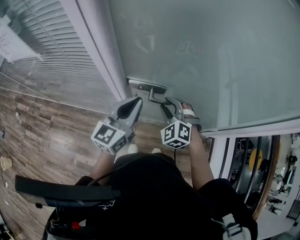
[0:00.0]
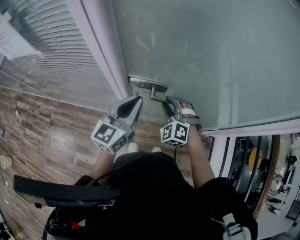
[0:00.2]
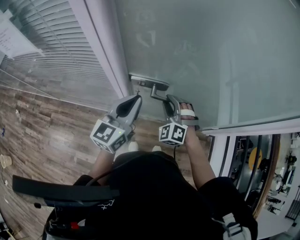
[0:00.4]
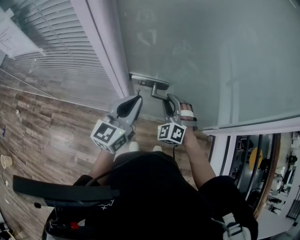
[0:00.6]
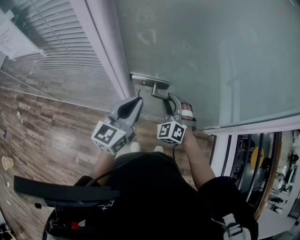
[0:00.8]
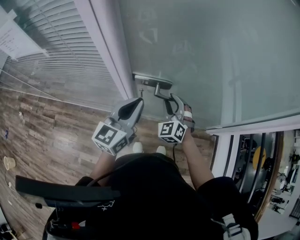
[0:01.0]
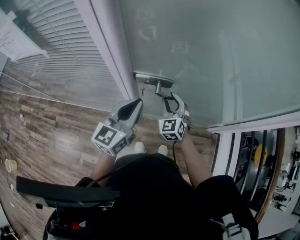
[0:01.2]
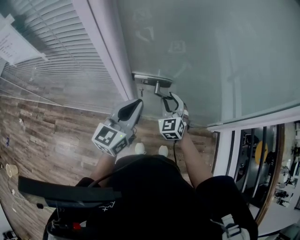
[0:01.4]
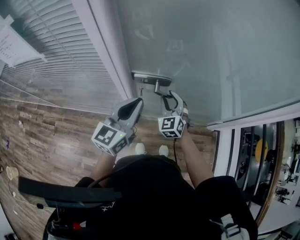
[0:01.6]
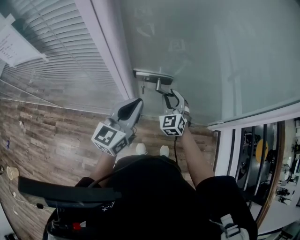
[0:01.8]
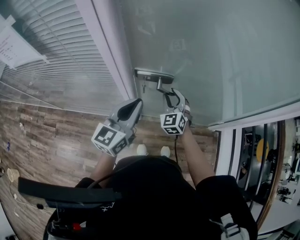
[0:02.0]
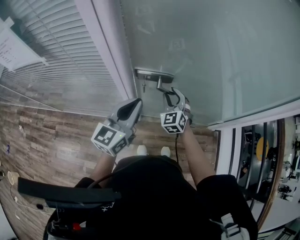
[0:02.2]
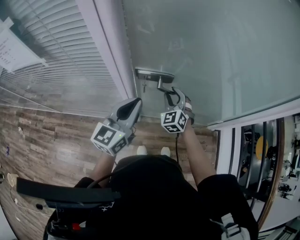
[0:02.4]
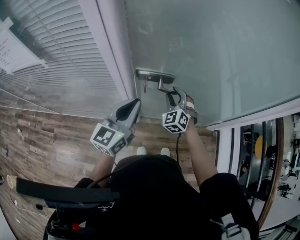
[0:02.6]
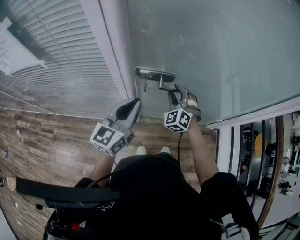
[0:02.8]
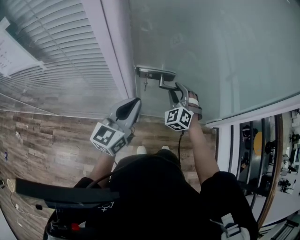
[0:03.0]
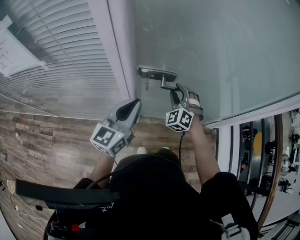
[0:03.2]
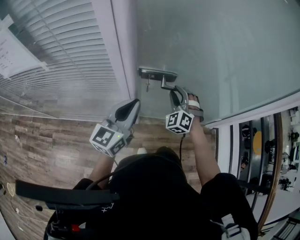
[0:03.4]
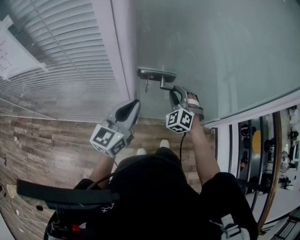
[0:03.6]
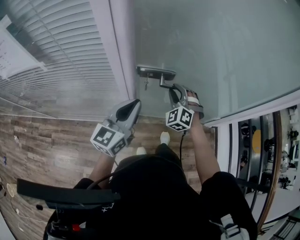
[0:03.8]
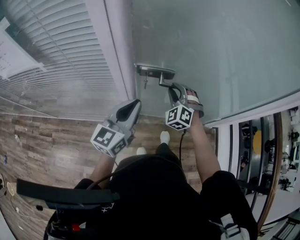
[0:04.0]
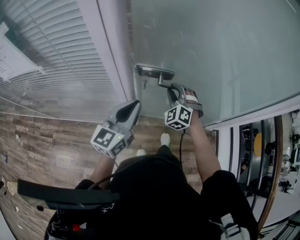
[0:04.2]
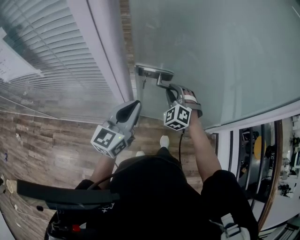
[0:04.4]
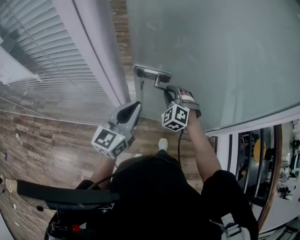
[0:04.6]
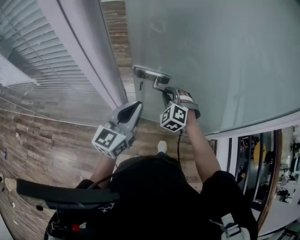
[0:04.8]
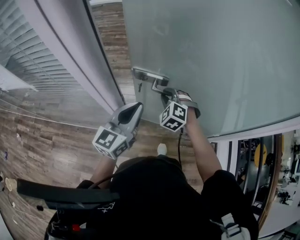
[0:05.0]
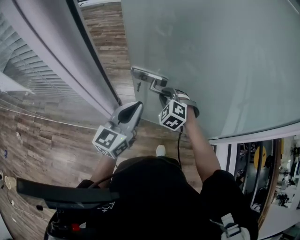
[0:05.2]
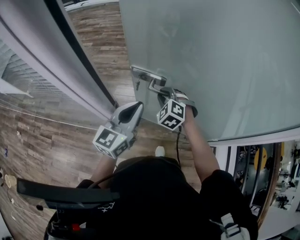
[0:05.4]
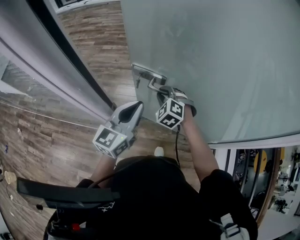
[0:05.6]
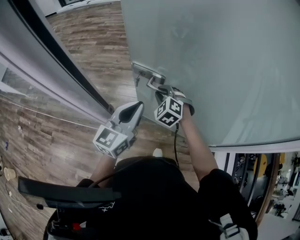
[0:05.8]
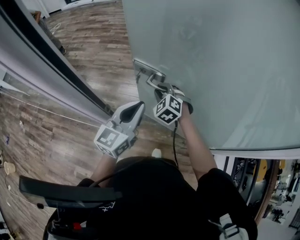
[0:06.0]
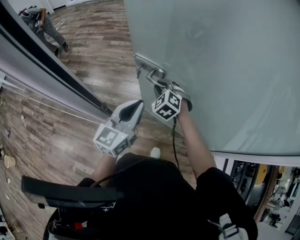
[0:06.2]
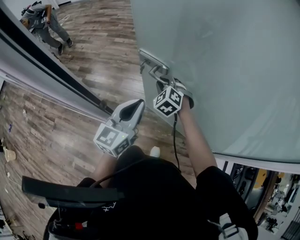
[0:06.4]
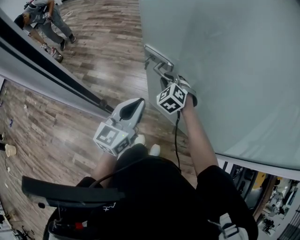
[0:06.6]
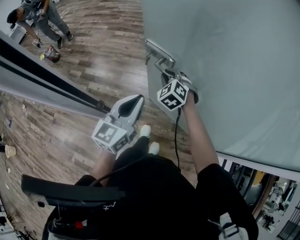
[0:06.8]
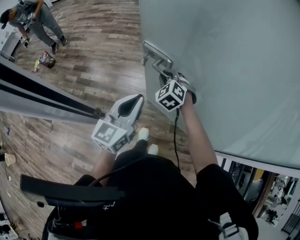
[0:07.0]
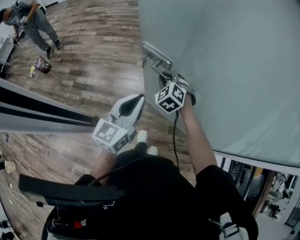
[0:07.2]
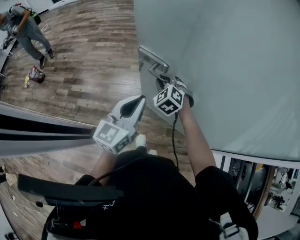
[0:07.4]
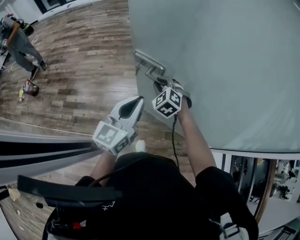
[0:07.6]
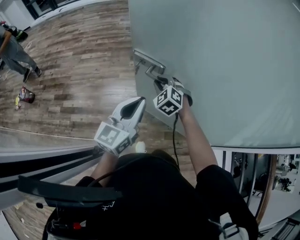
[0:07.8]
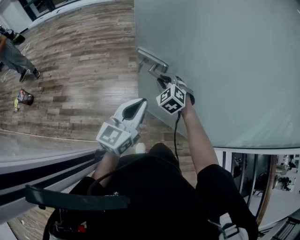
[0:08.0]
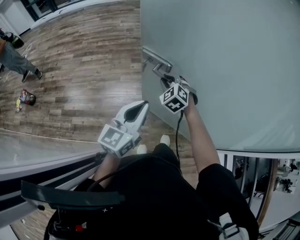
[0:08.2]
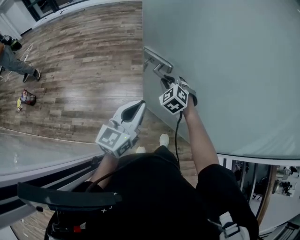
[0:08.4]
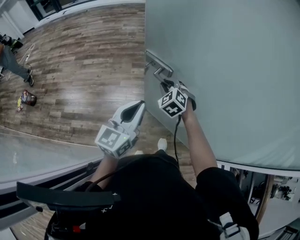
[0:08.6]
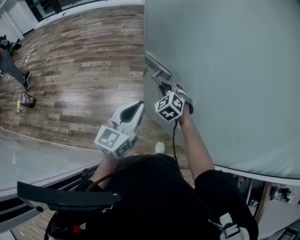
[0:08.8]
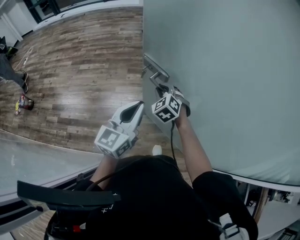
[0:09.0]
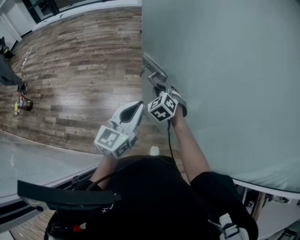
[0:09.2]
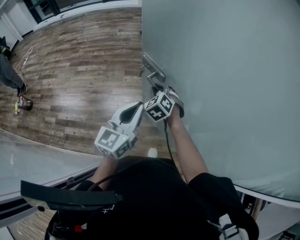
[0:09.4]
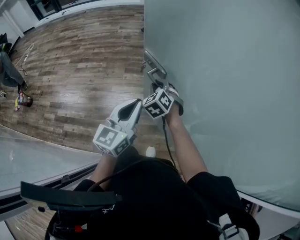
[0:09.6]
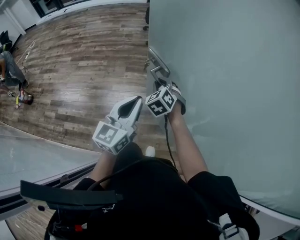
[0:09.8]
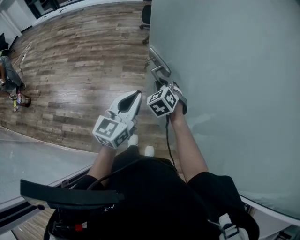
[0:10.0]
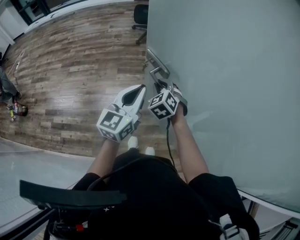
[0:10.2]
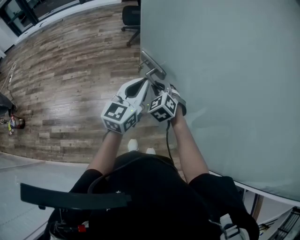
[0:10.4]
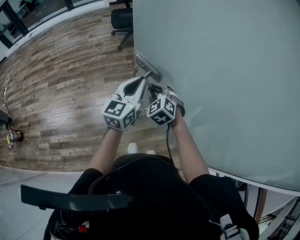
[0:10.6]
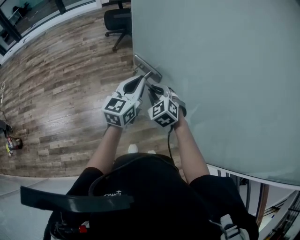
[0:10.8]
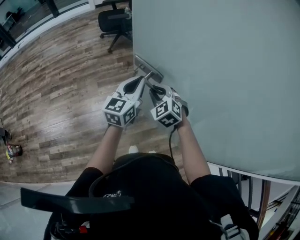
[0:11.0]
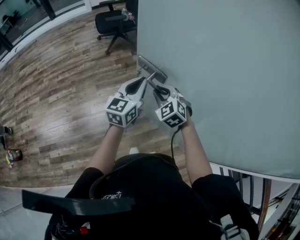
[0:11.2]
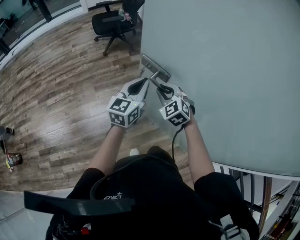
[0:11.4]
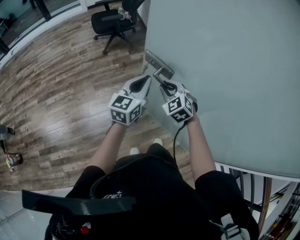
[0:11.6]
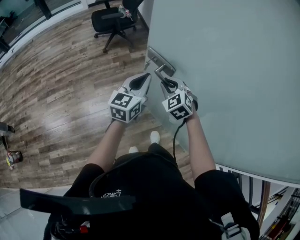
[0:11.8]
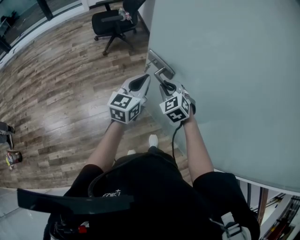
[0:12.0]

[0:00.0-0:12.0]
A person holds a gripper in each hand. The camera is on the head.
0:00.0 to 0:01.6: The right gripper rotates approximately 30 degrees.
0:01.6 to 0:03.0: The right gripper changes its angle by some 20 degrees.
0:03.0 to 0:04.4: The grippers stay close to where they were, moving slightly.
0:04.4 to 0:06.0: The right gripper travels forward by about 10 cm, and rotates approximately 20 degrees; the left gripper heads forward and to the right, covering approximately 15 cm.
0:06.0 to 0:07.6: The left gripper is displaced forward by approximately 10 cm; the right gripper is displaced forward and to the right by approximately 10 cm.
0:07.6 to 0:09.0: The left gripper heads forward, covering about 10 cm, while the right gripper shifts roughly 15 cm forward and to the right.
0:09.0 to 0:10.4: The right gripper goes approximately 10 cm forward and to the right. The left gripper is displaced forward and to the right by about 20 cm.
0:10.4 to 0:12.0: The right gripper is displaced to the right and forward by approximately 10 cm. Meanwhile the left gripper is displaced forward by approximately 10 cm.

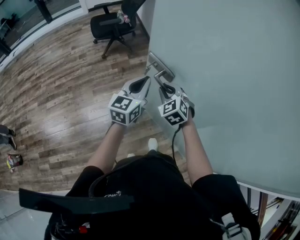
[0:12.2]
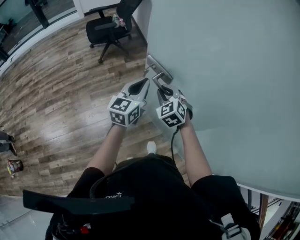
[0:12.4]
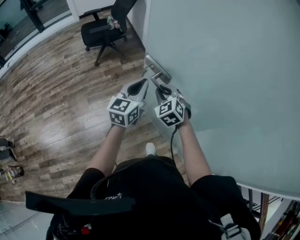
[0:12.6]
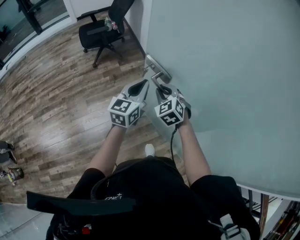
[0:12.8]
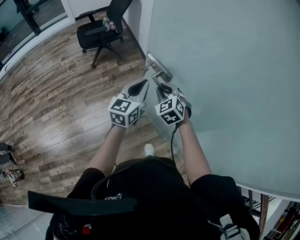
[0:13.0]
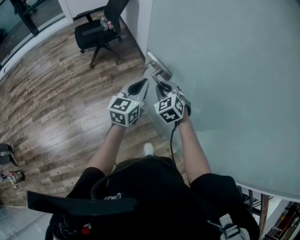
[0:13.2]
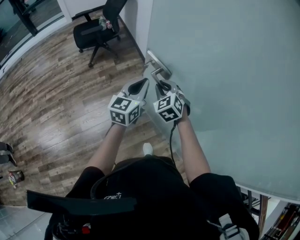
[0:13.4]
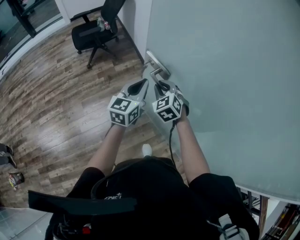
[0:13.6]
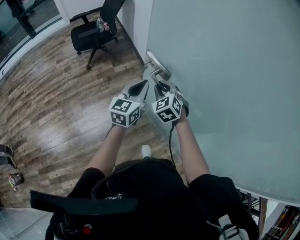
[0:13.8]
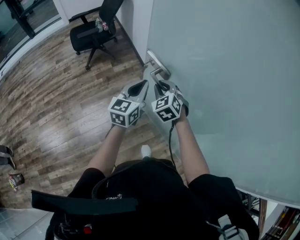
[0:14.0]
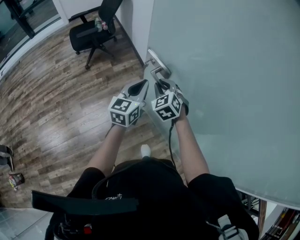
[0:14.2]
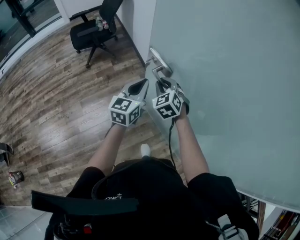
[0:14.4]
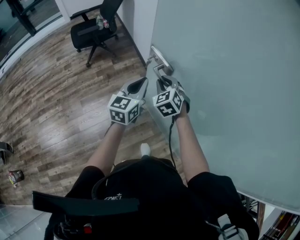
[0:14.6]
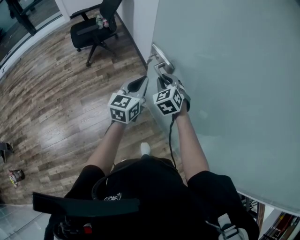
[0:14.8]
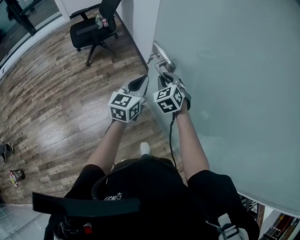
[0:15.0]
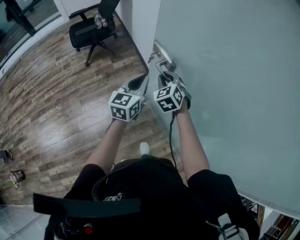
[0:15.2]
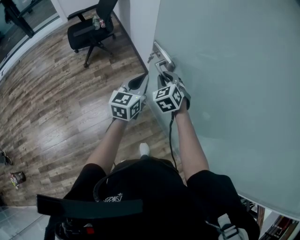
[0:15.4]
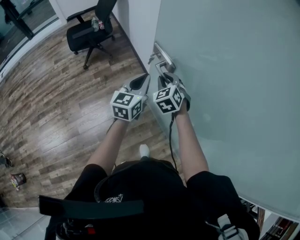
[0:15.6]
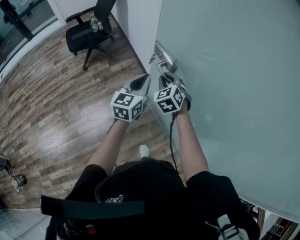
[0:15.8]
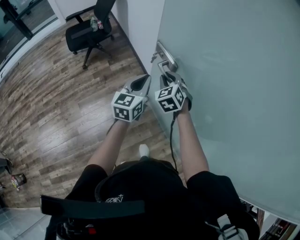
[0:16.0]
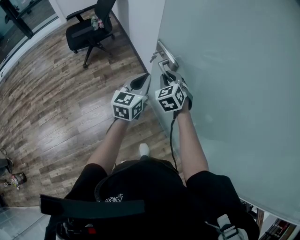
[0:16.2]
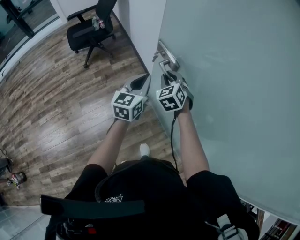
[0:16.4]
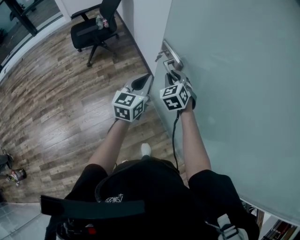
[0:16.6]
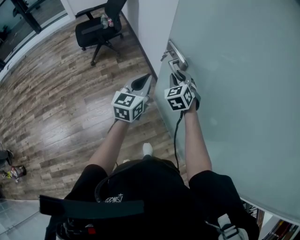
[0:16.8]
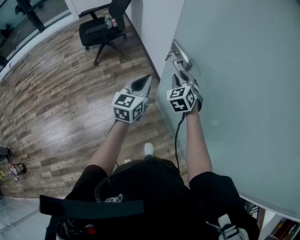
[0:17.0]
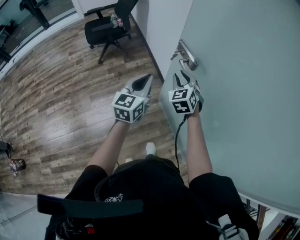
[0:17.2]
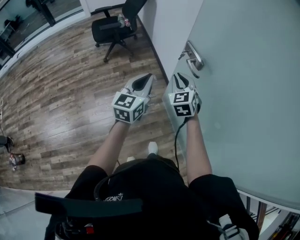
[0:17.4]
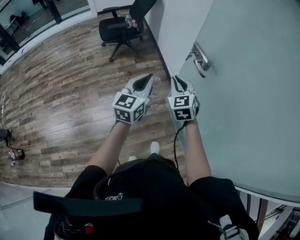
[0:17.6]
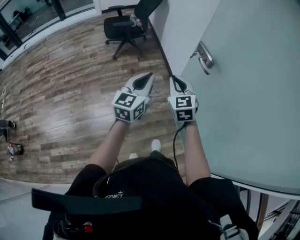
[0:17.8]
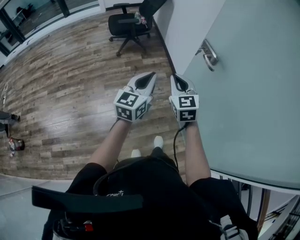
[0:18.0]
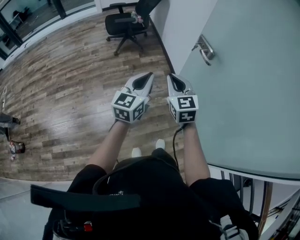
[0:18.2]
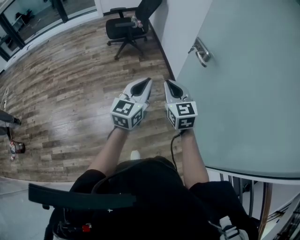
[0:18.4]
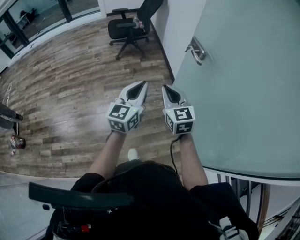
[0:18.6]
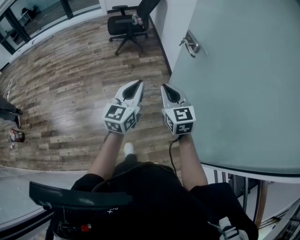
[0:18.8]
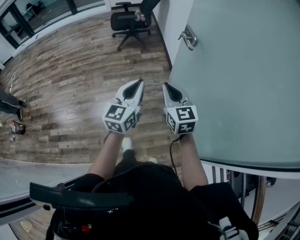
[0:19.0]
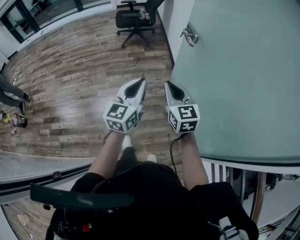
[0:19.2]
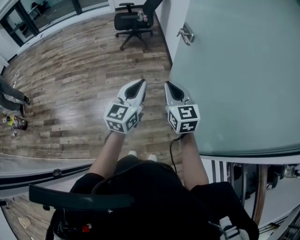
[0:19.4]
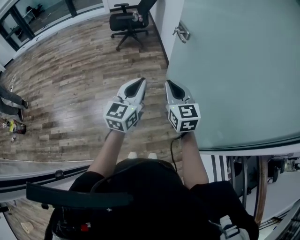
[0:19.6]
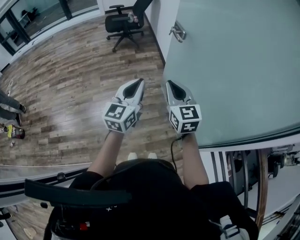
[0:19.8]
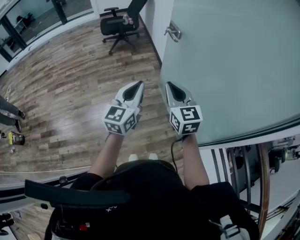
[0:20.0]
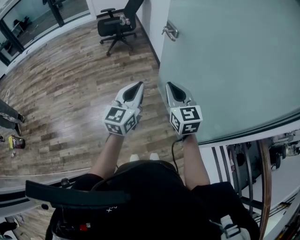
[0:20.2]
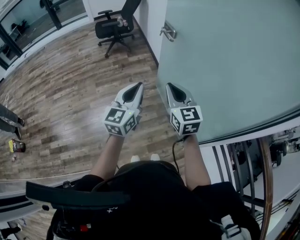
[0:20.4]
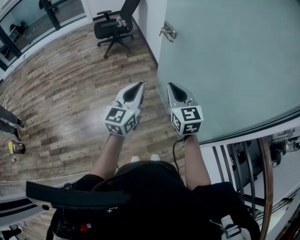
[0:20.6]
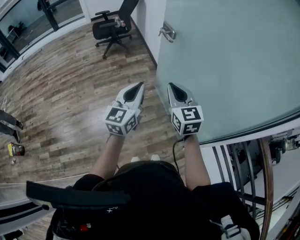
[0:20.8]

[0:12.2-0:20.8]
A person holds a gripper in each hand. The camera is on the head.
0:12.2 to 0:13.6: The two grippers go approximately 10 cm forward and to the right.
0:13.6 to 0:15.0: The right gripper moves roughly 5 cm.
0:15.0 to 0:16.6: The grippers move only a little.
0:16.6 to 0:18.0: The left gripper goes roughly 20 cm backward and to the left; the right gripper goes roughly 25 cm backward, to the left and upward, and rotates about 30 degrees.
0:18.0 to 0:19.4: The two grippers go about 20 cm backward and to the right.
0:19.4 to 0:20.8: The grippers stay close to where they were, moving slightly.

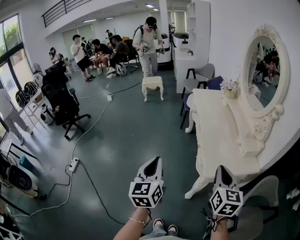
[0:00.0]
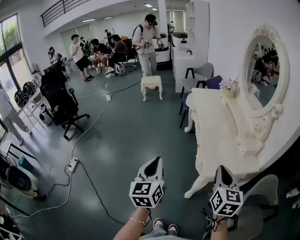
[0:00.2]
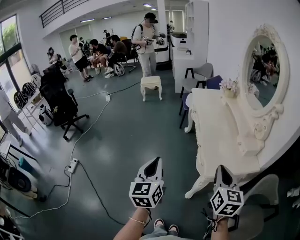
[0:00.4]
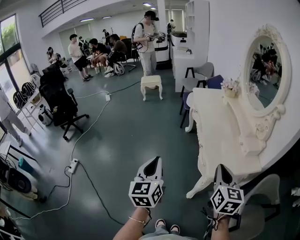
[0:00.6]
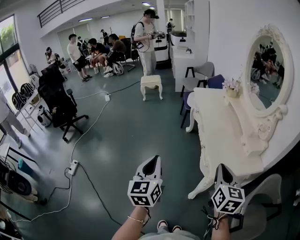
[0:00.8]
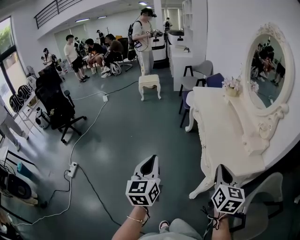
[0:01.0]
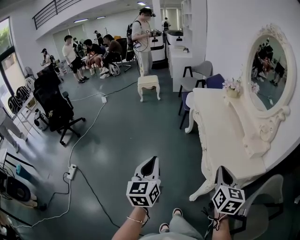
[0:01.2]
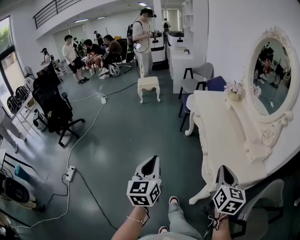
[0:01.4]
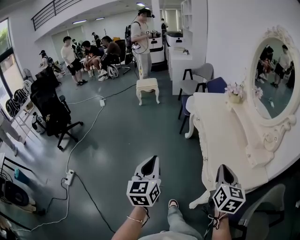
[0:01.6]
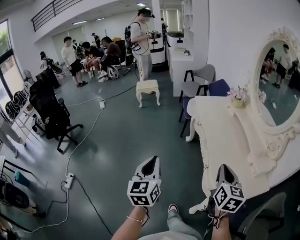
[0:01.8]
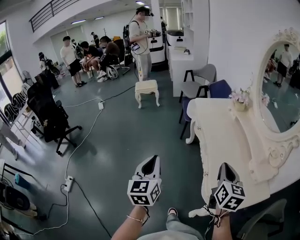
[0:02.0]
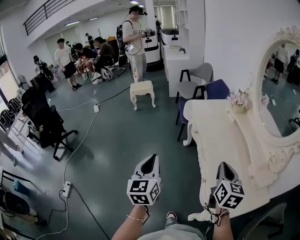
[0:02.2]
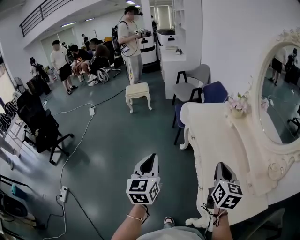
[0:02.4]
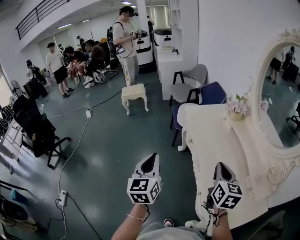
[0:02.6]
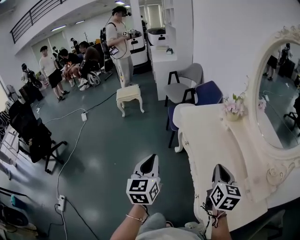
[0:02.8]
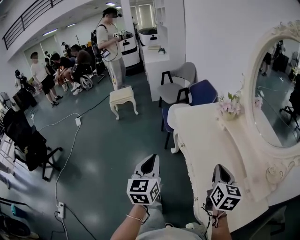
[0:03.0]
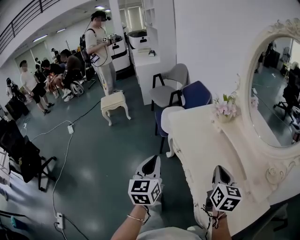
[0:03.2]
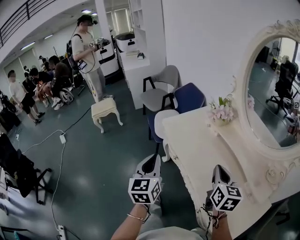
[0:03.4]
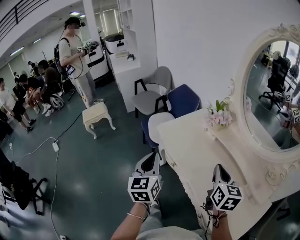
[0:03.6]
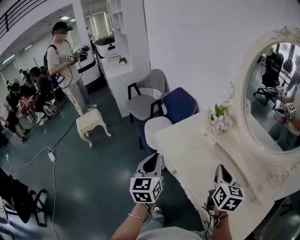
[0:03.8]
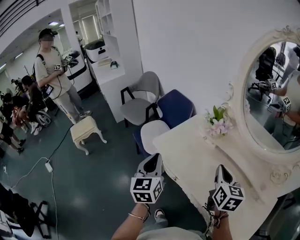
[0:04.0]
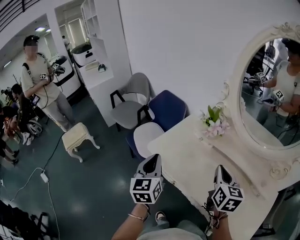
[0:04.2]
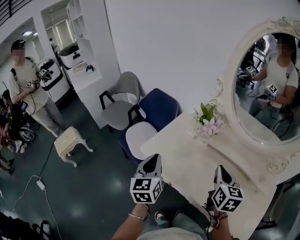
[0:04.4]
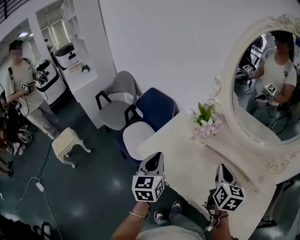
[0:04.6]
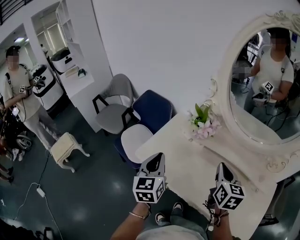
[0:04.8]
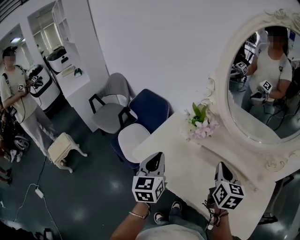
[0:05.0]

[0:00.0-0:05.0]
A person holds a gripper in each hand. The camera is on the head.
0:00.0 to 0:01.6: Both grippers move forward and to the left, about 15 cm.
0:01.6 to 0:03.4: Both grippers move forward, some 40 cm. The left gripper turns by roughly 20 degrees.
0:03.4 to 0:05.0: The left gripper moves roughly 25 cm, and changes its angle by about 30 degrees. The right gripper shifts by roughly 15 cm, and rotates roughly 30 degrees.
